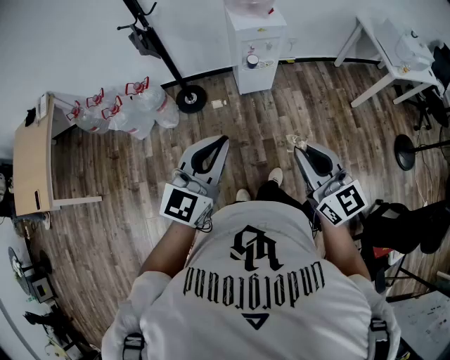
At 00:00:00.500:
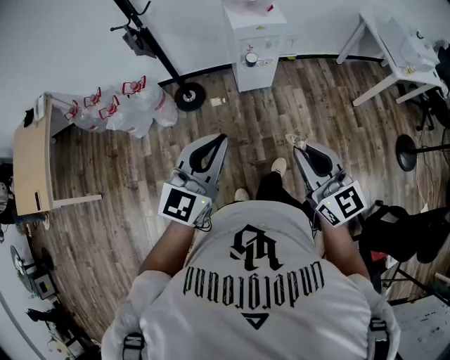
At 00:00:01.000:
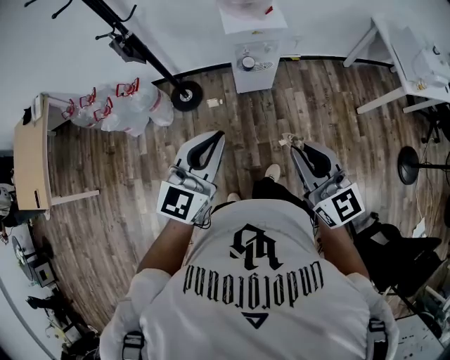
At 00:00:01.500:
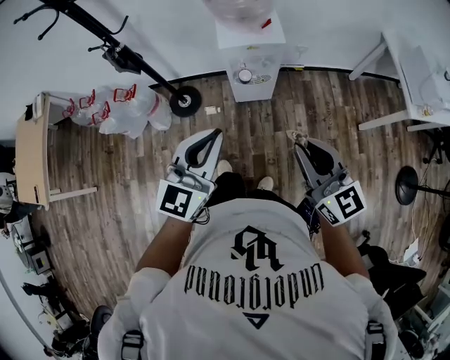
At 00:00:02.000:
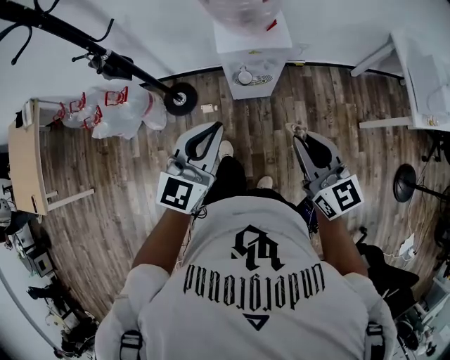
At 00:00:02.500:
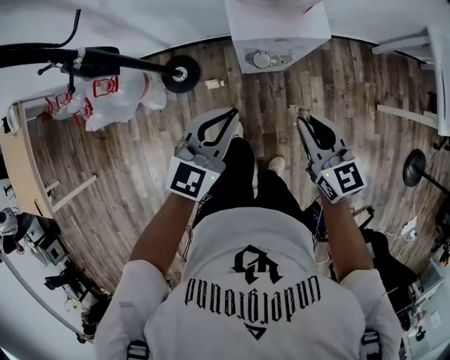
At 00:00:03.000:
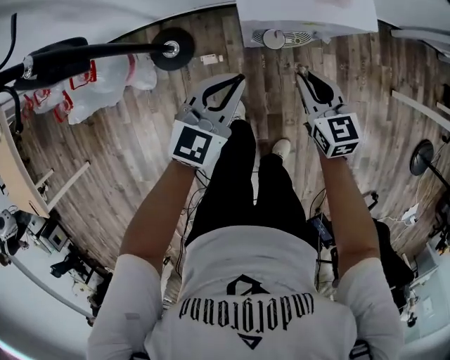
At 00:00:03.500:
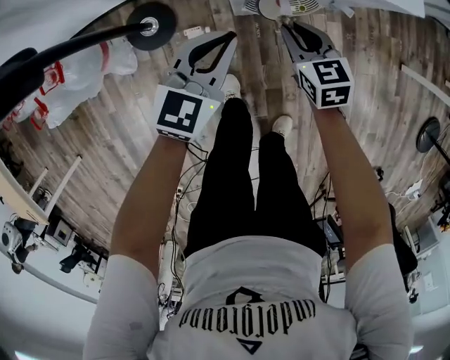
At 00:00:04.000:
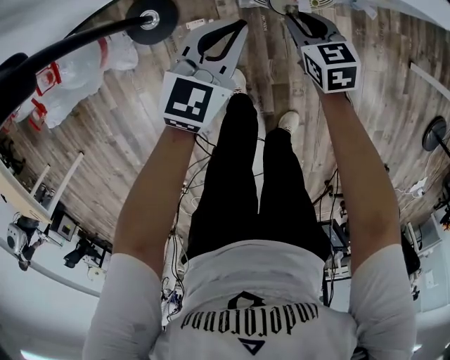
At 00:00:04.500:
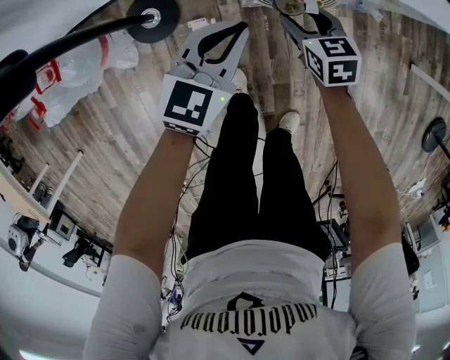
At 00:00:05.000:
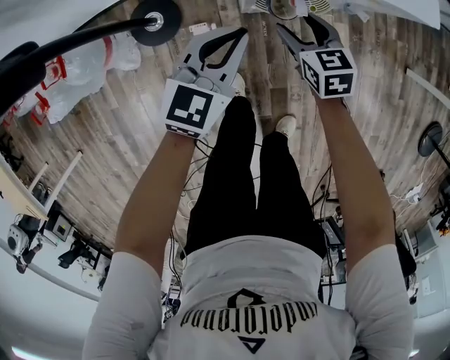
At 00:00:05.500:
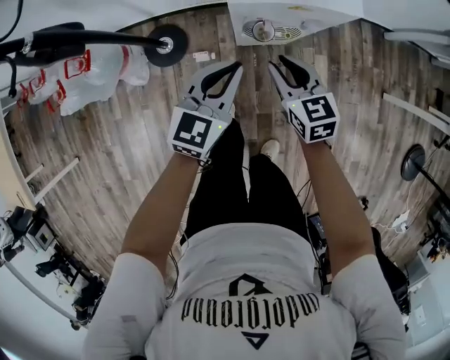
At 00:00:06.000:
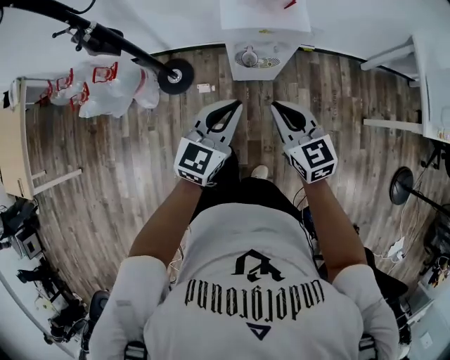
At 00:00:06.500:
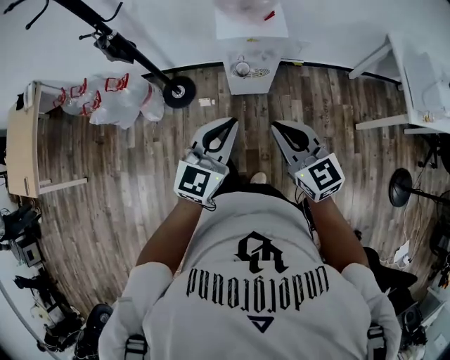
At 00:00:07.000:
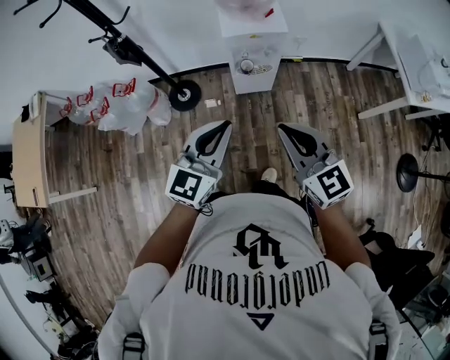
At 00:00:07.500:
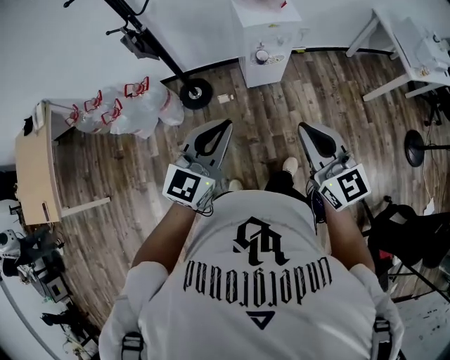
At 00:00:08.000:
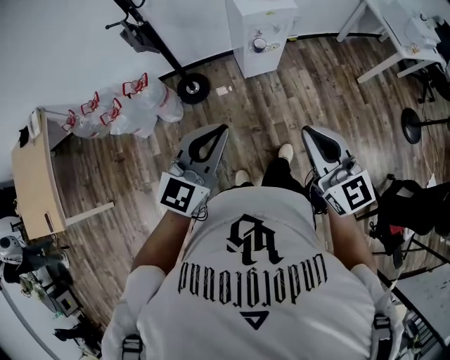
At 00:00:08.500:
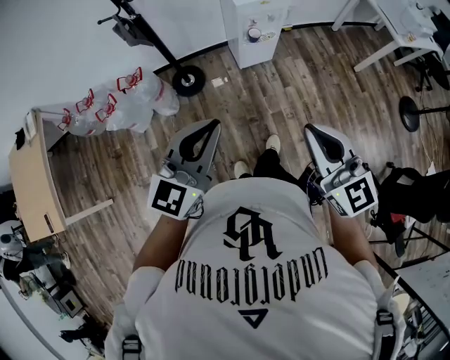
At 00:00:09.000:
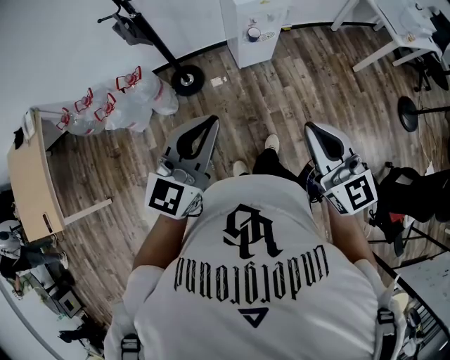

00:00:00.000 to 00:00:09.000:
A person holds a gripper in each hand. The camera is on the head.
00:00:00.000 to 00:00:02.000: The pair of grippers is taken forward, about 40 cm.
00:00:02.000 to 00:00:04.500: The grippers both shift downward and forward by approximately 60 cm. The right gripper tips its fingers downward by about 40 degrees, and opens up. The left gripper changes its angle by approximately 20 degrees.
00:00:04.500 to 00:00:07.000: The pair of grippers is taken backward, approximately 40 cm. The grippers both shift upward by some 50 cm. The right gripper tilts its fingers roughly 40 degrees upward, and closes up. Meanwhile the left gripper rotates some 20 degrees.
00:00:07.000 to 00:00:09.000: The right gripper travels backward and to the left by some 25 cm. The left gripper moves to the left and backward, approximately 30 cm.

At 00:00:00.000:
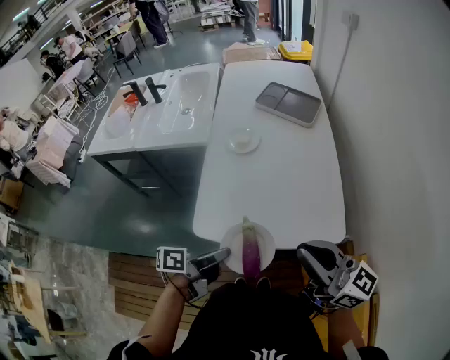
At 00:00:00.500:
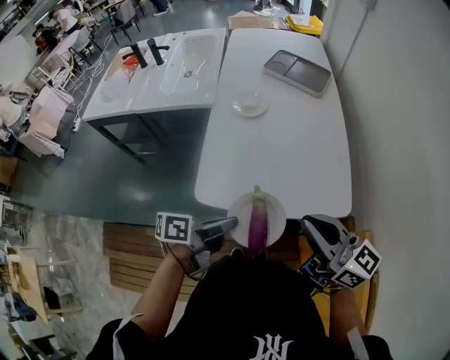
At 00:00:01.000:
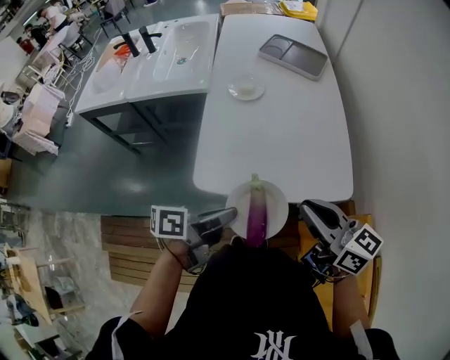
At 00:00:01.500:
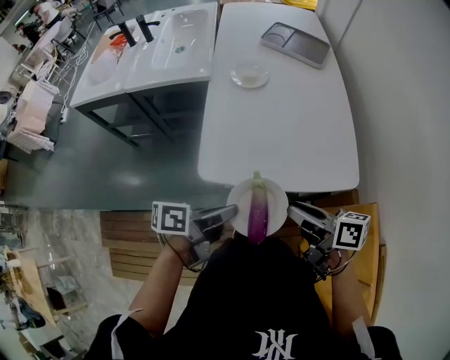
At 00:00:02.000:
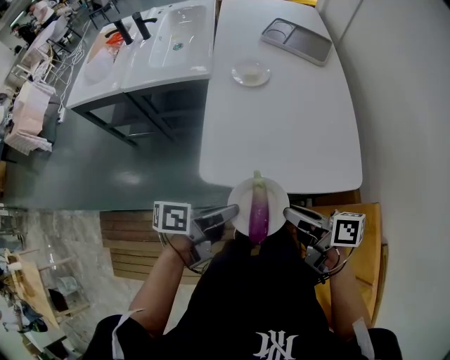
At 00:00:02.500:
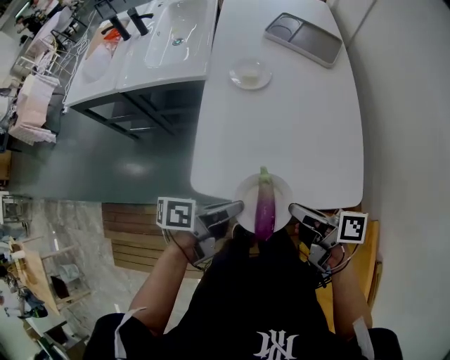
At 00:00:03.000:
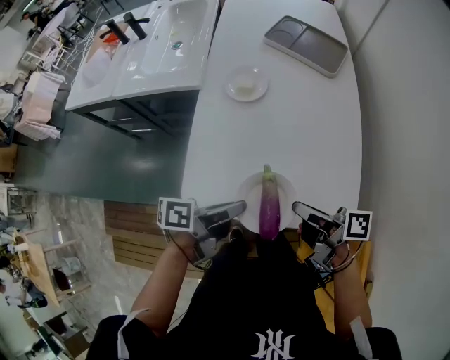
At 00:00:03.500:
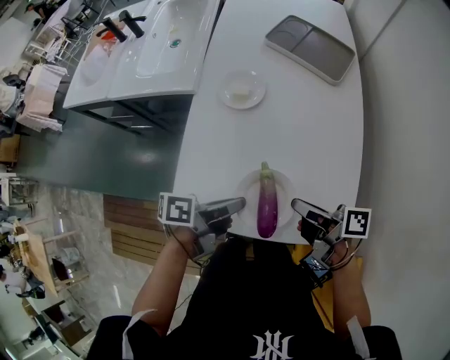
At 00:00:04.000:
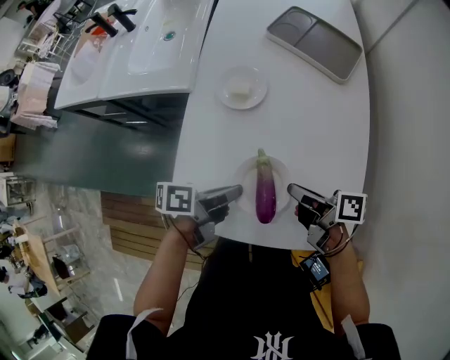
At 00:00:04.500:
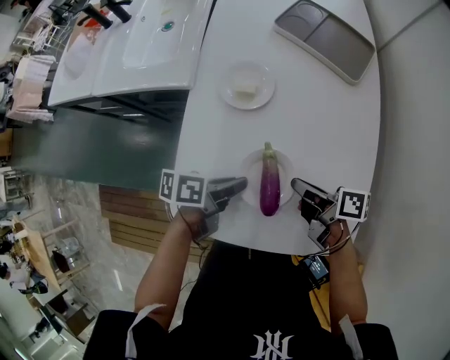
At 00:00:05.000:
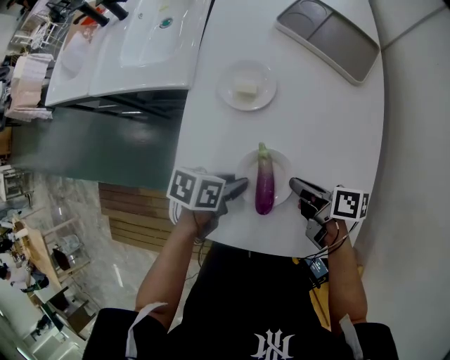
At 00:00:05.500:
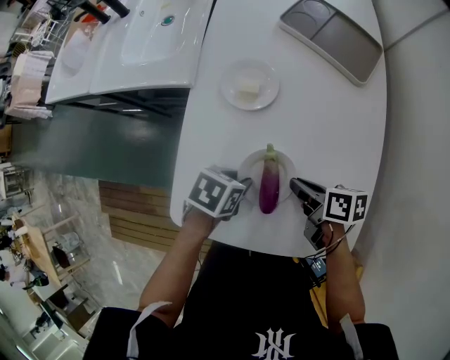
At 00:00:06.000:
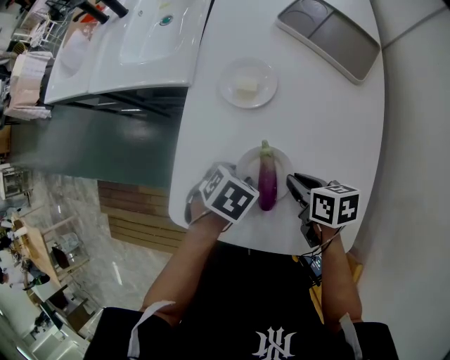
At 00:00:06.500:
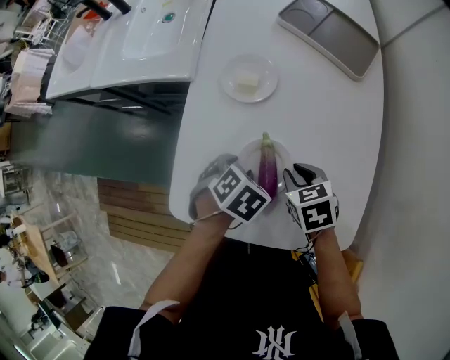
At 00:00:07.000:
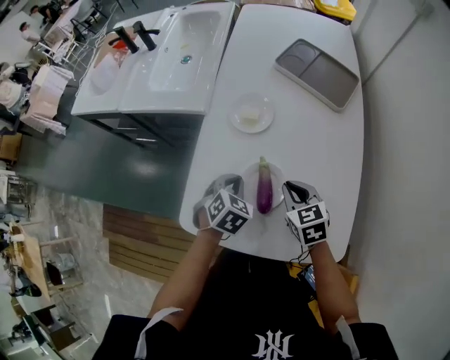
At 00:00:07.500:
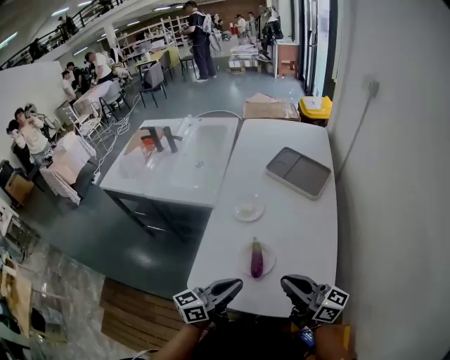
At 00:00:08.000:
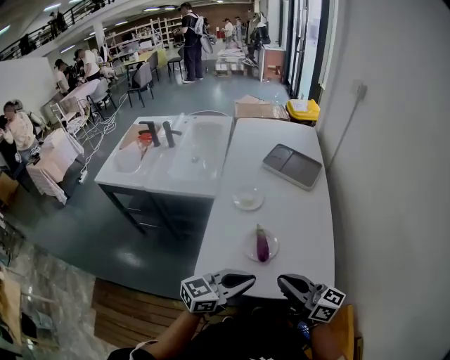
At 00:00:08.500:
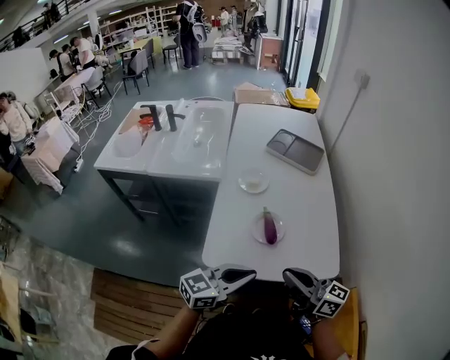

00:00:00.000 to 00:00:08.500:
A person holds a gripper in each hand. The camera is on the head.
00:00:00.000 to 00:00:02.000: The right gripper heads downward and to the left, covering approximately 20 cm, and rolls clockwise, seen from behind, by approximately 50 degrees; the left gripper heads to the left, covering roughly 5 cm.
00:00:02.000 to 00:00:04.000: The grippers both shift forward by roughly 25 cm.
00:00:04.000 to 00:00:06.500: Both grippers move downward, about 5 cm. The left gripper tilts its fingers about 60 degrees downward, and opens up, while the right gripper angles its fingers downward, by some 40 degrees.
00:00:06.500 to 00:00:08.500: The left gripper ends up roughly 35 cm from where it was, points its fingers approximately 70 degrees further upward, and closes up. The right gripper moves upward, some 25 cm, and tilts its fingers about 70 degrees upward.

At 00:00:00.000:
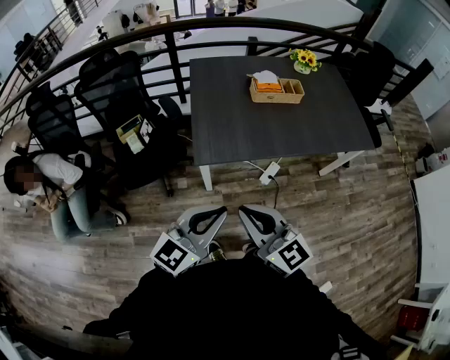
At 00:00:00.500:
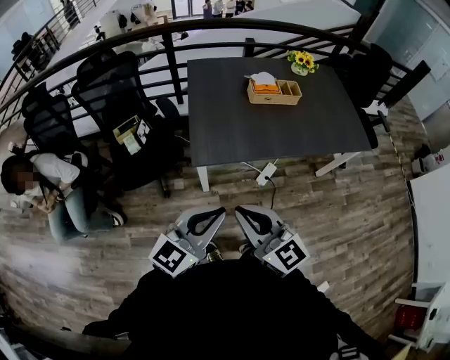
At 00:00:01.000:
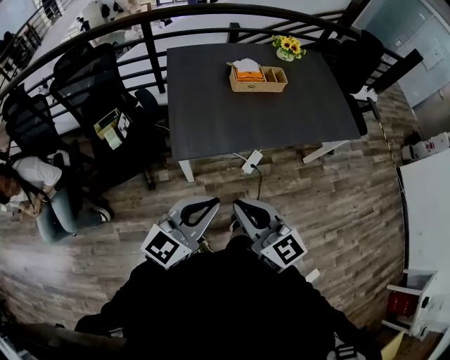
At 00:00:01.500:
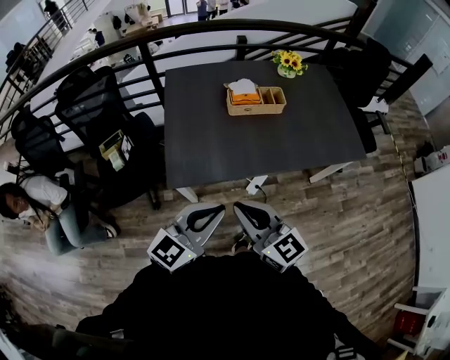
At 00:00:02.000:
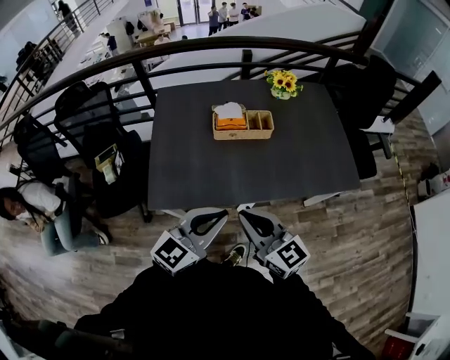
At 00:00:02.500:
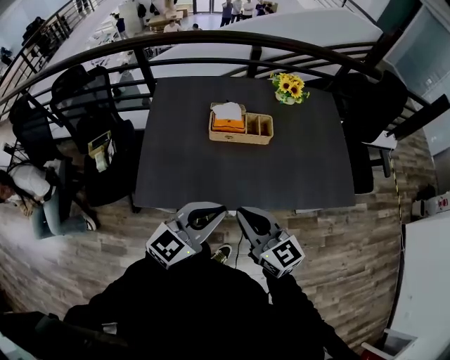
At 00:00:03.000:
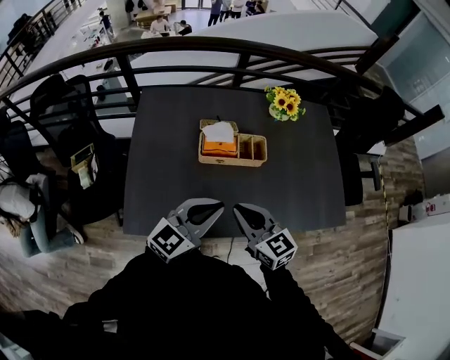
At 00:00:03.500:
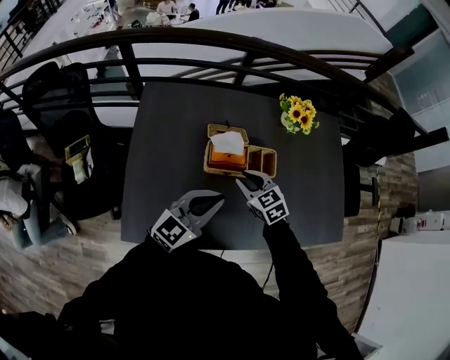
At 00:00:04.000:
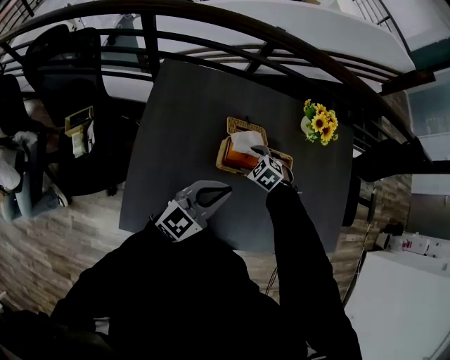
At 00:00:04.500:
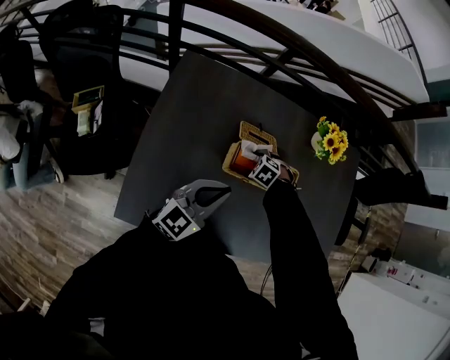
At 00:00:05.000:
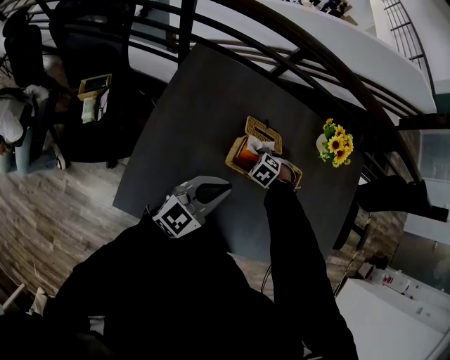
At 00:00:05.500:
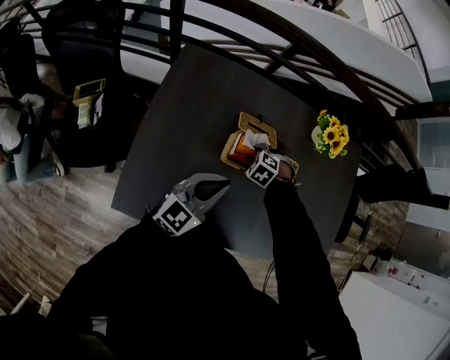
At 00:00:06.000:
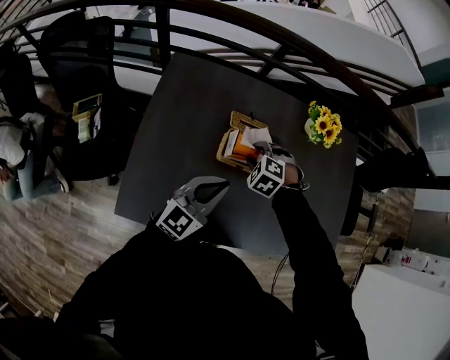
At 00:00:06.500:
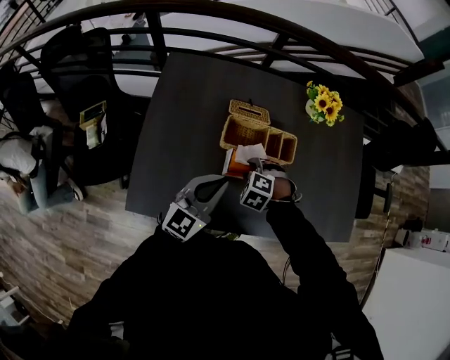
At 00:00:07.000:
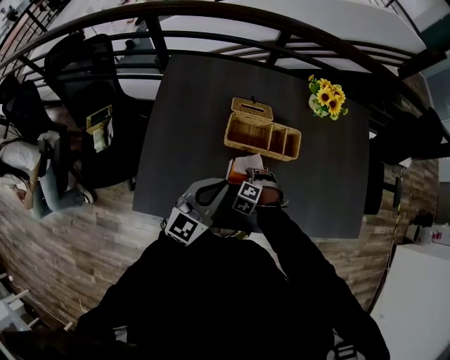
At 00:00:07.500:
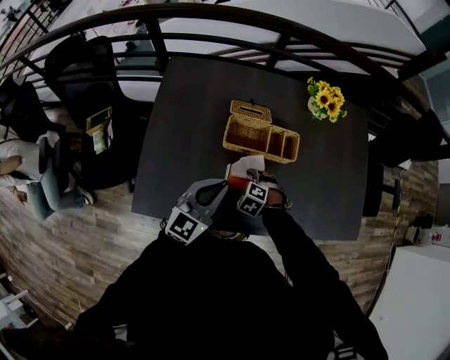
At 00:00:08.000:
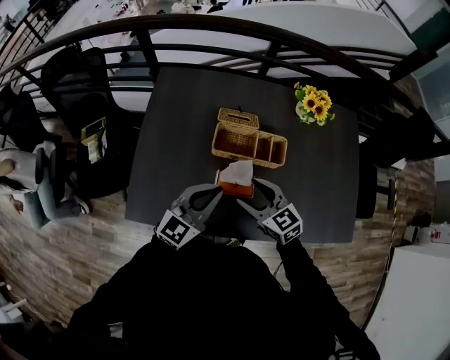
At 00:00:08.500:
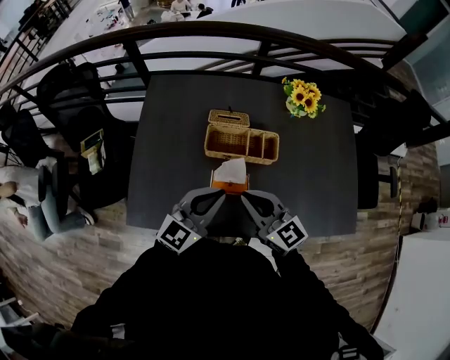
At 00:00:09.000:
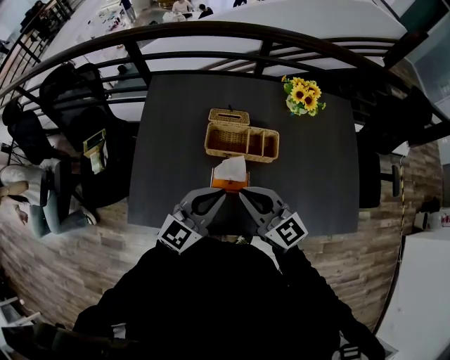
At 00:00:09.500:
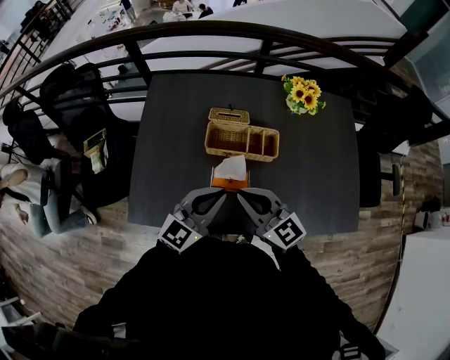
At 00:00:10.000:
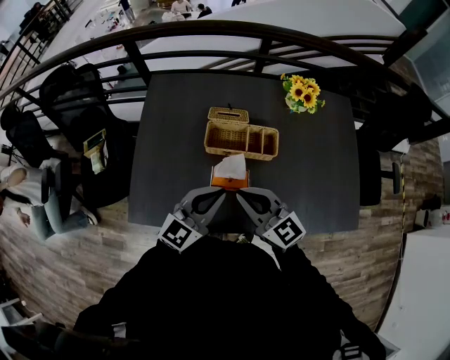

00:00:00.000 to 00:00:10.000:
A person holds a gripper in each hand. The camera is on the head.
00:00:00.000 to 00:00:02.000: Both grippers travel together to the right and forward, approximately 30 cm.
00:00:02.000 to 00:00:04.000: The right gripper goes roughly 60 cm forward and downward, points its fingers about 60 degrees further downward, and opens its fingers, while the left gripper travels forward by some 35 cm.
00:00:04.000 to 00:00:06.000: The right gripper moves upward, approximately 5 cm, and closes.
00:00:06.000 to 00:00:08.000: The right gripper shifts by approximately 20 cm, tilts its fingers roughly 40 degrees upward, and opens up, while the left gripper ends up about 5 cm from where it was.
00:00:08.000 to 00:00:10.000: The right gripper goes approximately 10 cm upward, and closes up; the left gripper moves approximately 5 cm.
